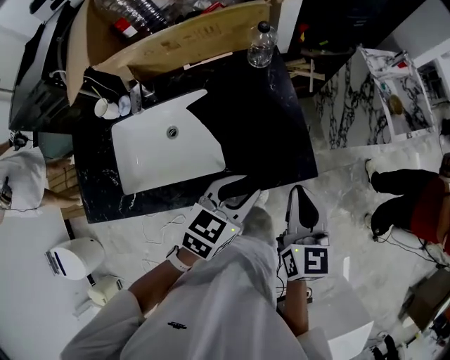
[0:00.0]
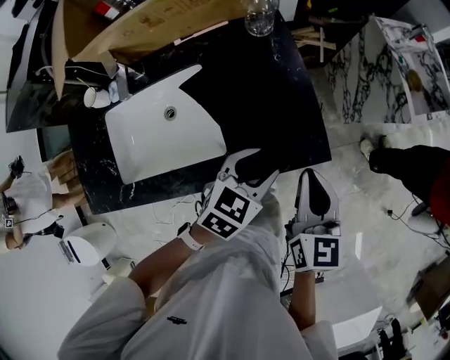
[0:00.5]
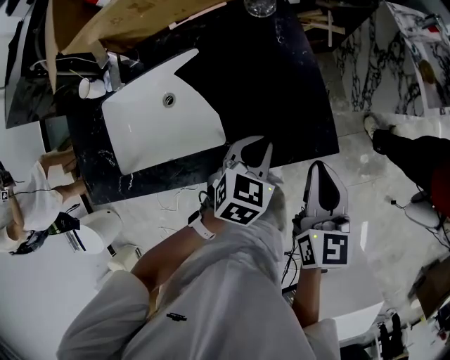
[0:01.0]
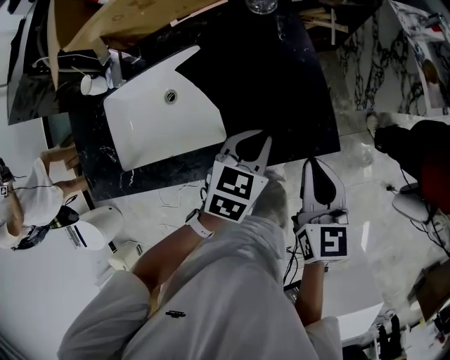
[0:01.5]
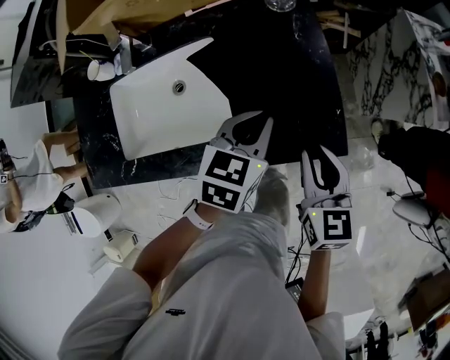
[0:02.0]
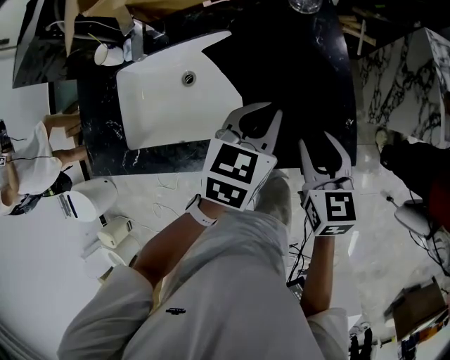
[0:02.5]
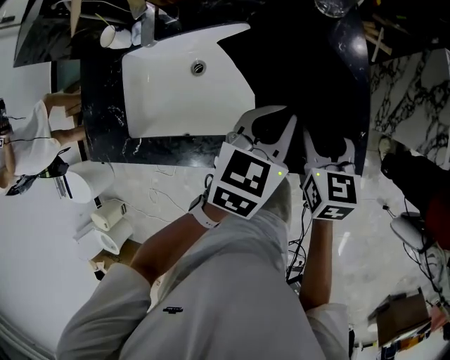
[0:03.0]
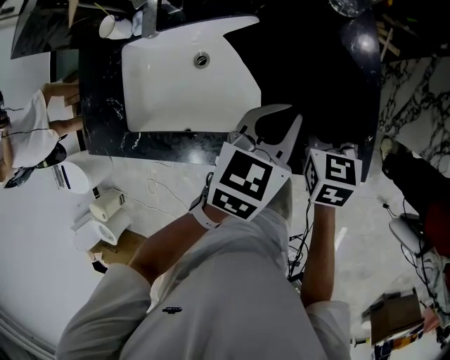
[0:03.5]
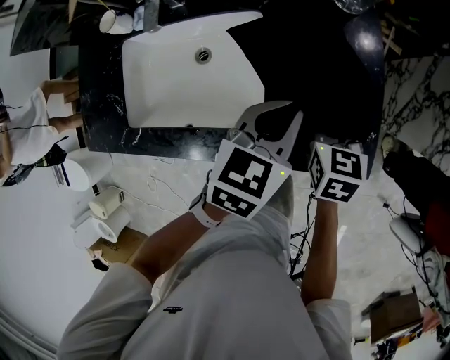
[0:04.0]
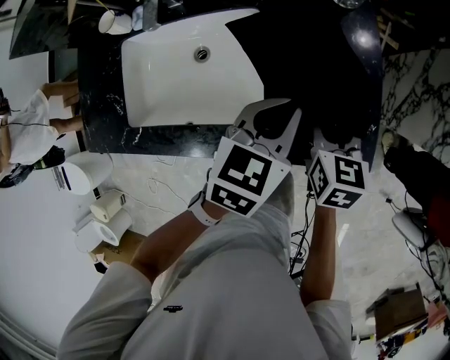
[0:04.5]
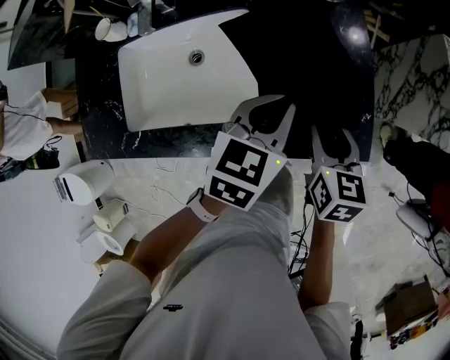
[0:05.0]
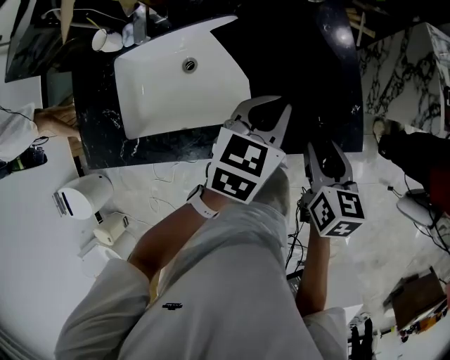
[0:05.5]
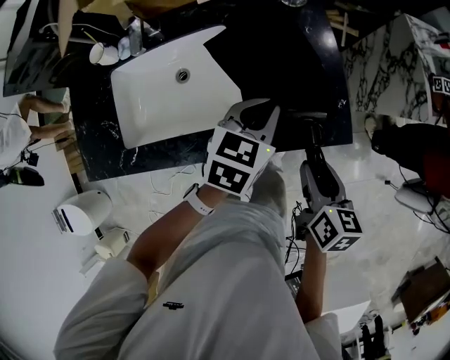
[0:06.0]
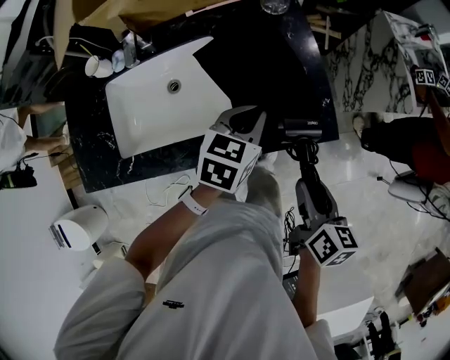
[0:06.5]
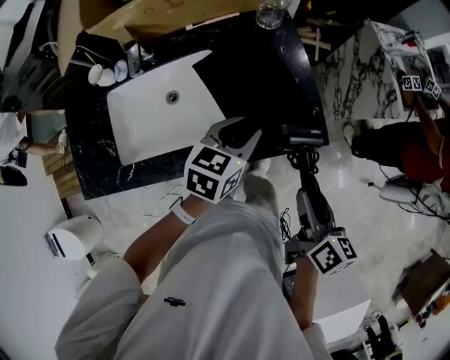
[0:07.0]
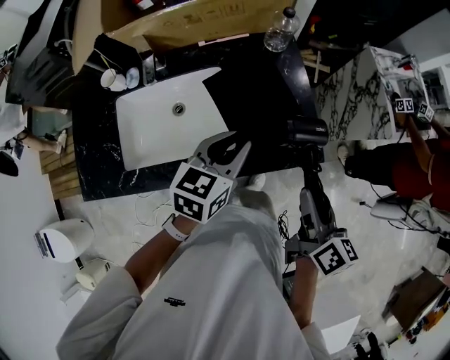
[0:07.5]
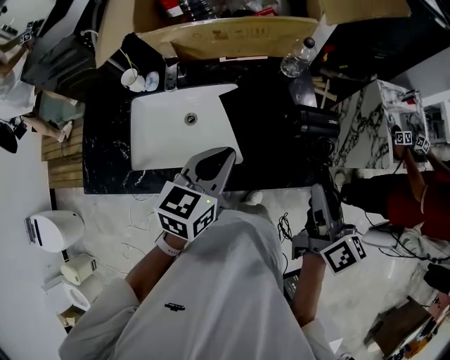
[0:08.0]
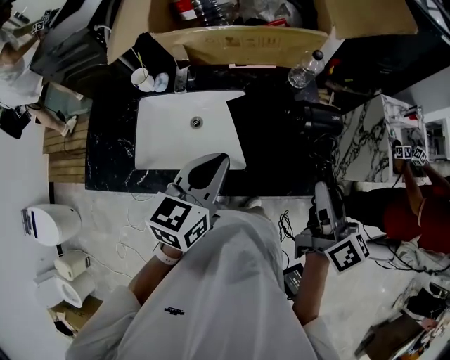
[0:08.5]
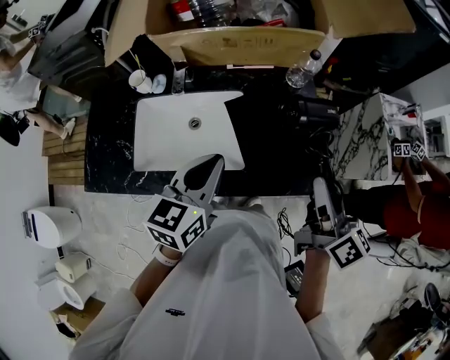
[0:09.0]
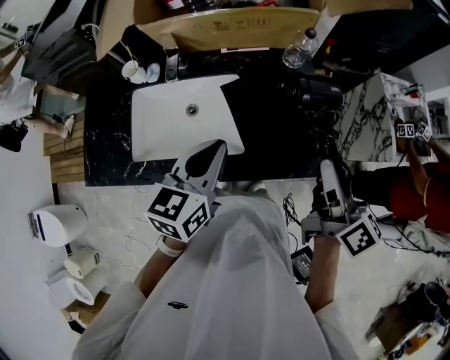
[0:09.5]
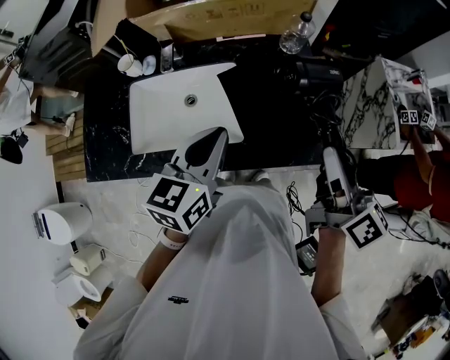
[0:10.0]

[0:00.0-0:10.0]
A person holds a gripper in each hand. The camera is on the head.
0:00.0 to 0:02.0: The left gripper heads forward and downward, covering approximately 10 cm, and opens, then closes once more; the right gripper moves downward, approximately 10 cm.
0:02.0 to 0:04.0: The right gripper goes roughly 15 cm forward, downward and to the left, and opens.
0:04.0 to 0:06.0: The right gripper is displaced backward and to the right by about 20 cm, and changes its angle by some 30 degrees.
0:06.0 to 0:08.0: The left gripper travels upward and to the left by roughly 15 cm, and opens, then closes once more, while the right gripper goes roughly 20 cm upward, and rotates roughly 30 degrees.
0:08.0 to 0:10.0: The grippers move only a little.

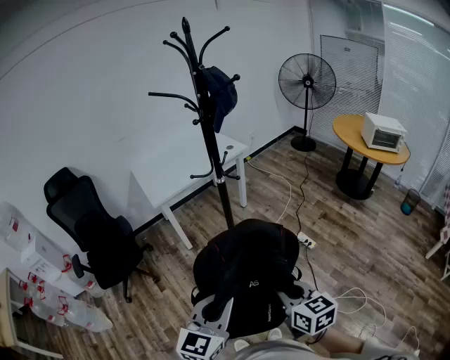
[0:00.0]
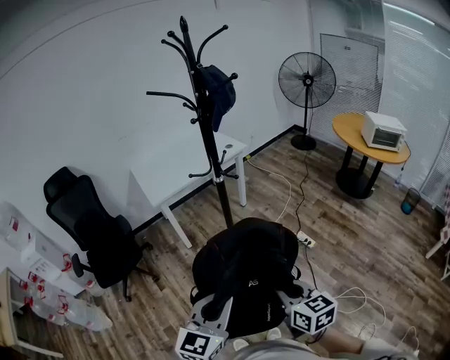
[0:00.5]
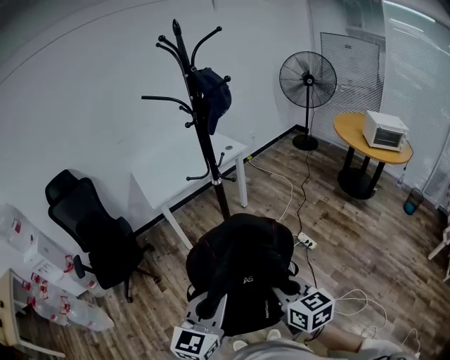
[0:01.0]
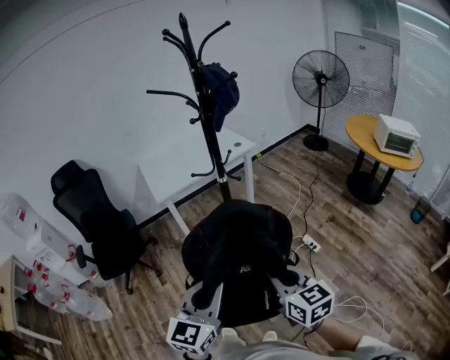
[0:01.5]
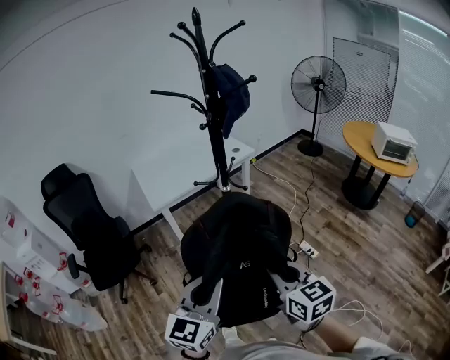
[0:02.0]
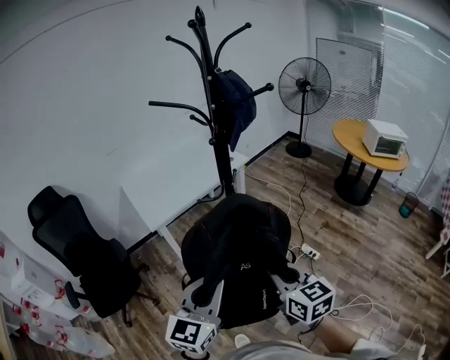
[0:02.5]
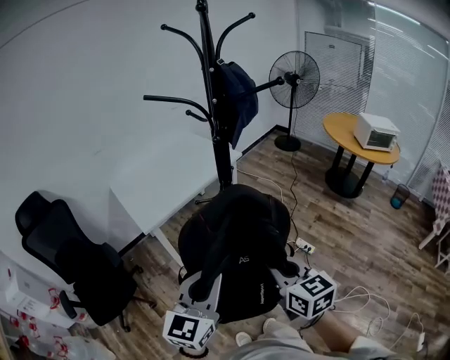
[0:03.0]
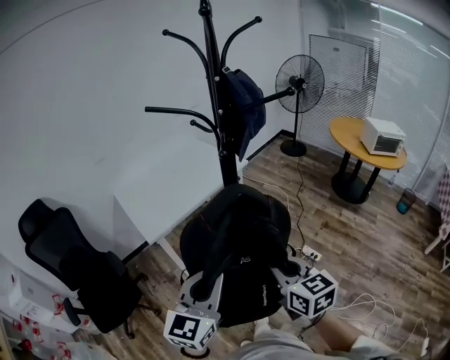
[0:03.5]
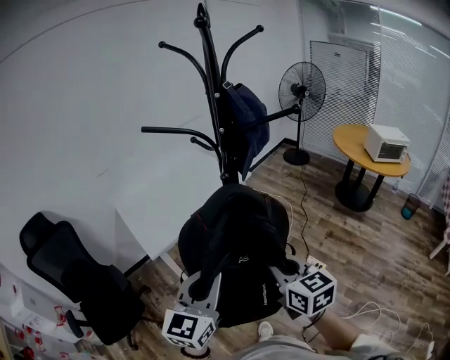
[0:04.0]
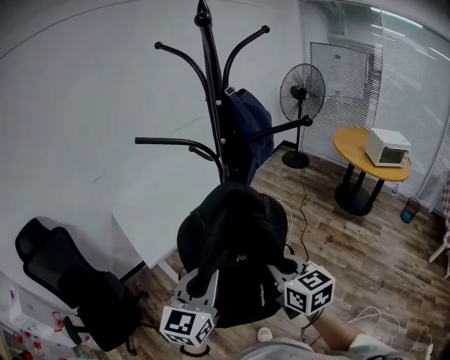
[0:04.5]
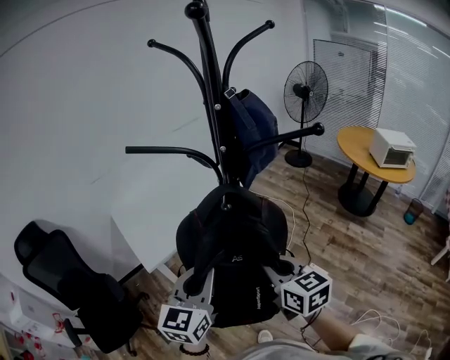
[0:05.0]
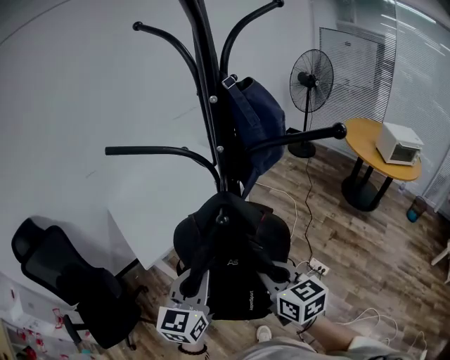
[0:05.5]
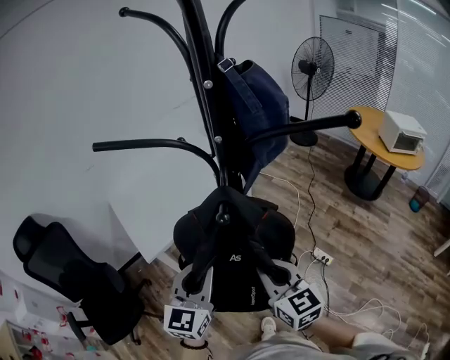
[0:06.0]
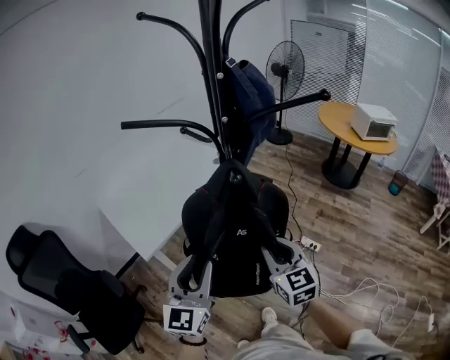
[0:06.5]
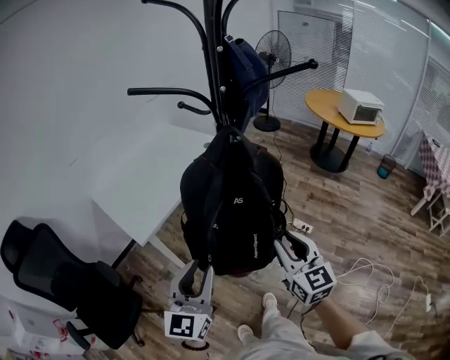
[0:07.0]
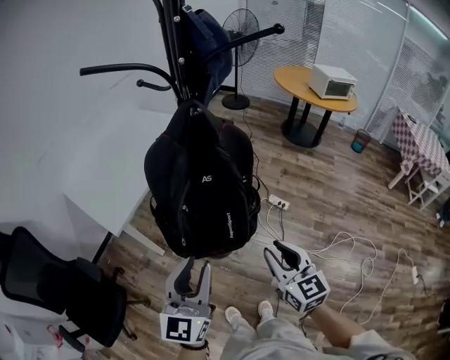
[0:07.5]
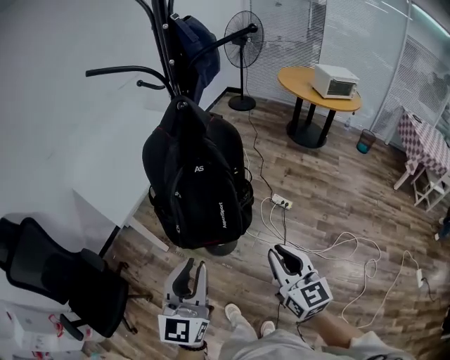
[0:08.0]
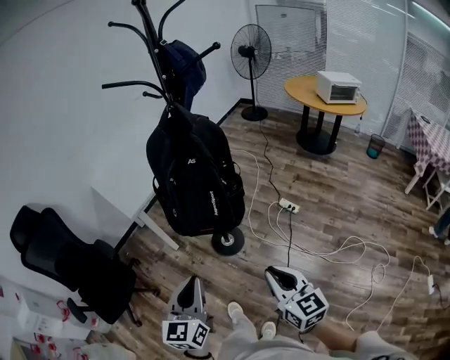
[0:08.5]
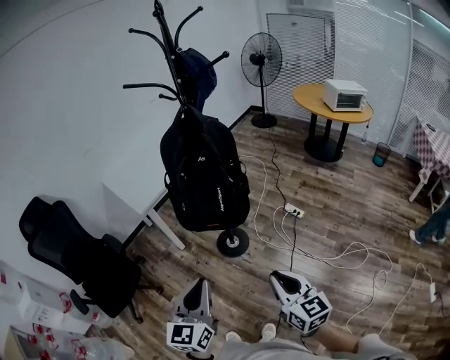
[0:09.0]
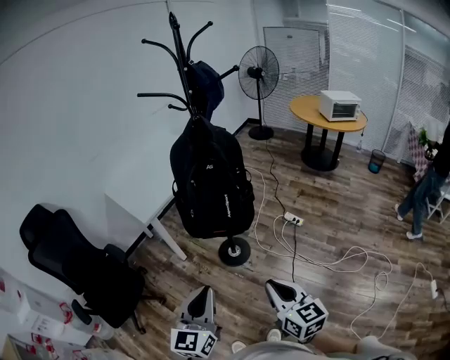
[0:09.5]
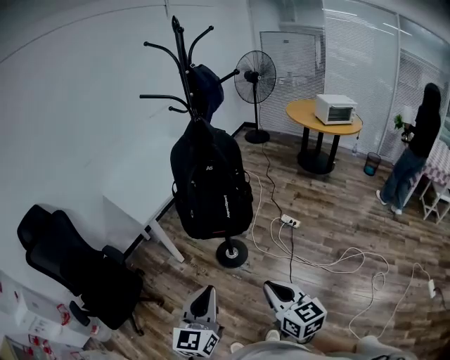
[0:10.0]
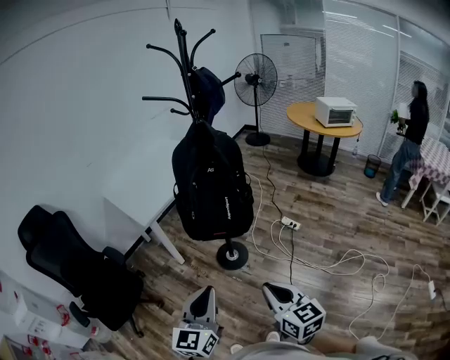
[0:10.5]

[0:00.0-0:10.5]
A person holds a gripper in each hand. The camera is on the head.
0:00.0 to 0:02.0: The right gripper is displaced forward and upward by about 15 cm. The left gripper goes approximately 15 cm forward.
0:02.0 to 0:04.0: The grippers both shift forward and to the left by about 25 cm.
0:04.0 to 0:06.5: The left gripper is displaced forward and to the left by some 10 cm, and opens its fingers, while the right gripper shifts roughly 5 cm forward.
0:06.5 to 0:08.5: The two grippers go some 35 cm backward. The left gripper closes.
0:08.5 to 0:10.5: The left gripper heads backward, covering roughly 10 cm. The right gripper travels backward and to the left by about 10 cm.

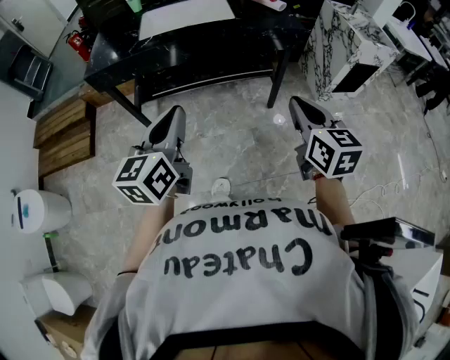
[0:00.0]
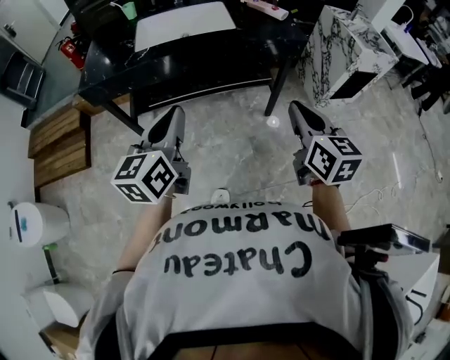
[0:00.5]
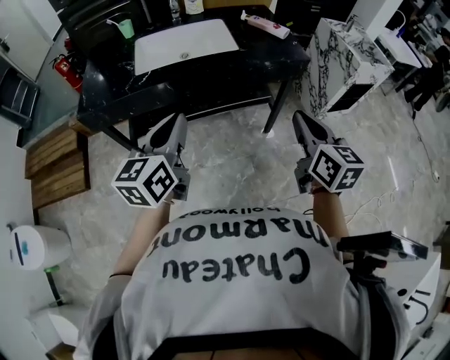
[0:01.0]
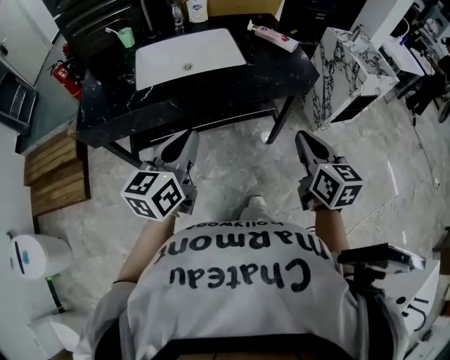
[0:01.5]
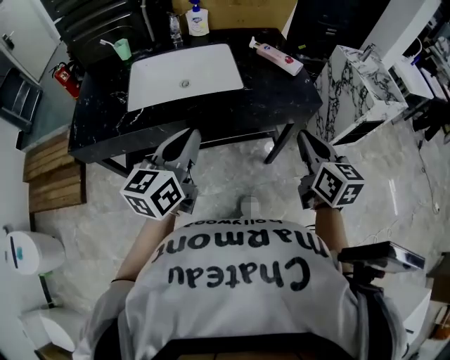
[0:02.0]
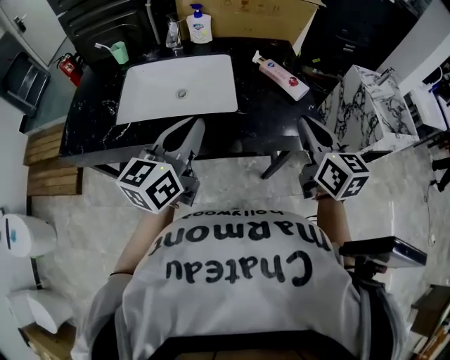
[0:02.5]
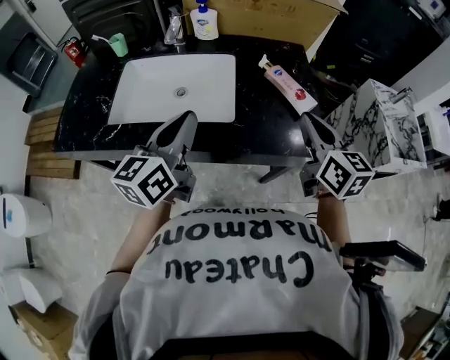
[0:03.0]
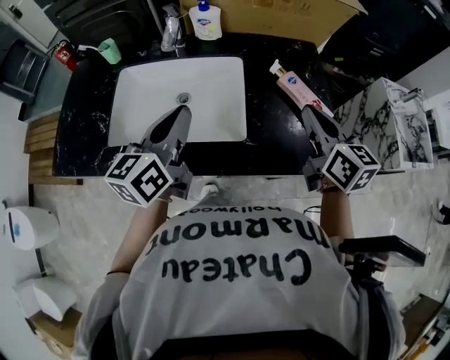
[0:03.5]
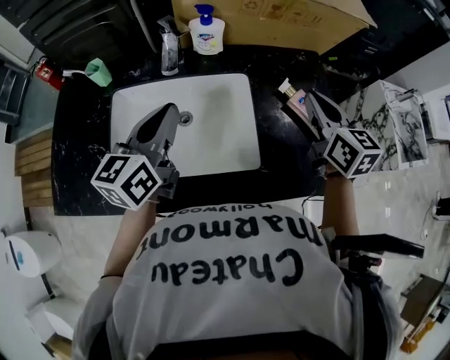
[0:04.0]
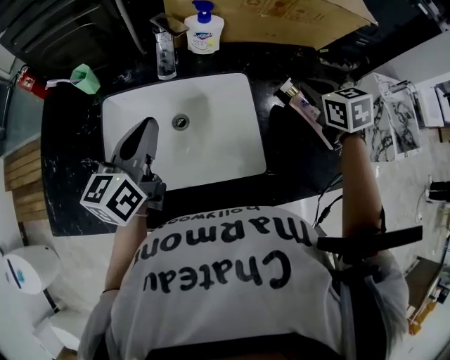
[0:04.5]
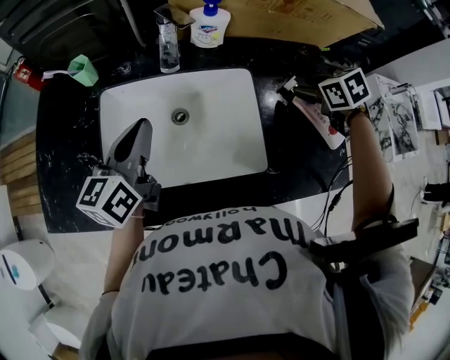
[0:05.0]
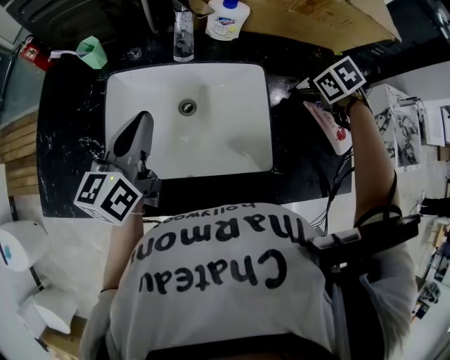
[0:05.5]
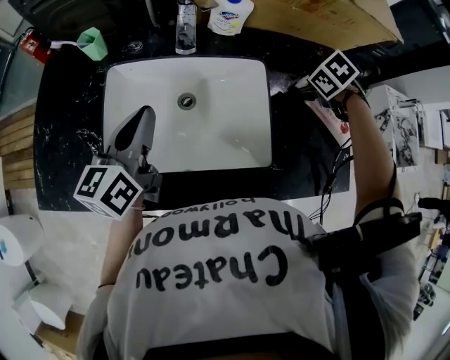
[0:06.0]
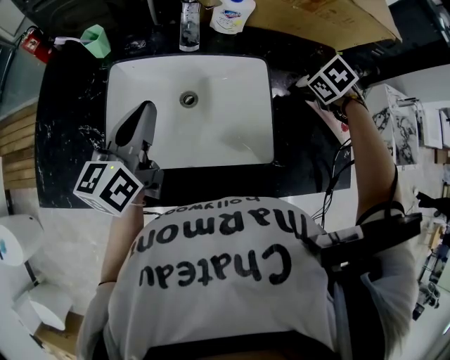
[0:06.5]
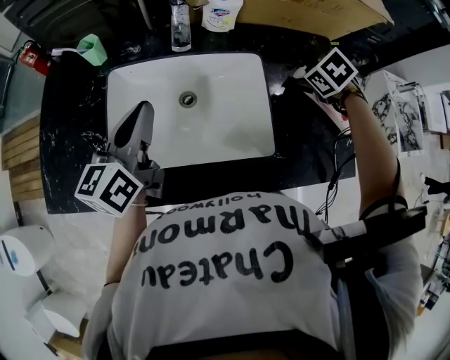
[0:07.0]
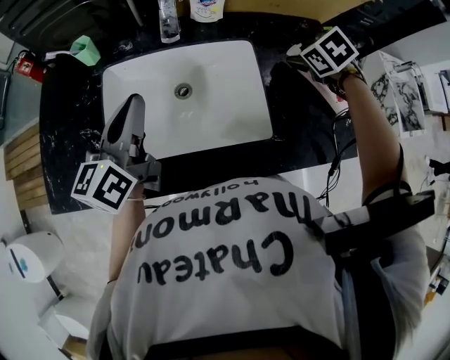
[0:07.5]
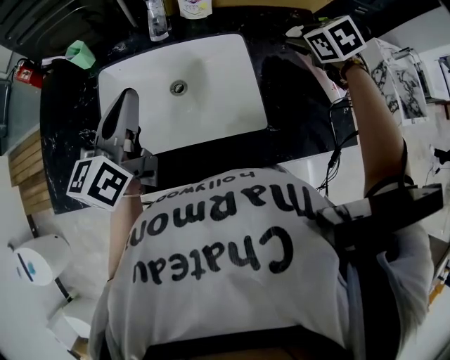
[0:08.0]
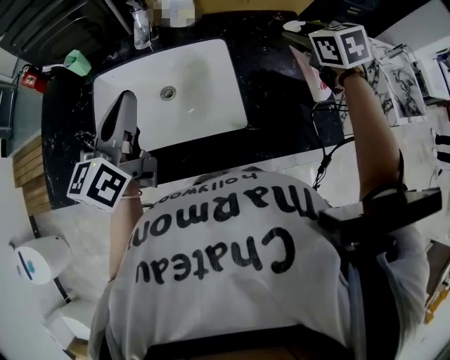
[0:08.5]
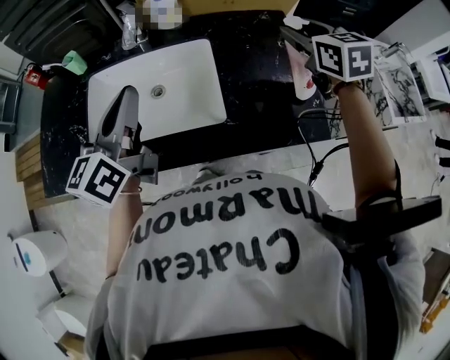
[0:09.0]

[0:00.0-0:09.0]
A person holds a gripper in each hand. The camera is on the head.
0:00.0 to 0:02.0: The two grippers go approximately 30 cm forward.
0:02.0 to 0:04.5: Both grippers move forward, some 40 cm. The right gripper turns by approximately 40 degrees.
0:04.5 to 0:07.0: The right gripper heads downward, covering some 10 cm, angles its fingers downward, by approximately 30 degrees, and opens its fingers.
0:07.0 to 0:09.0: The right gripper goes some 15 cm upward, and tips its fingers upward by about 50 degrees. Meanwhile the left gripper moves roughly 15 cm.
